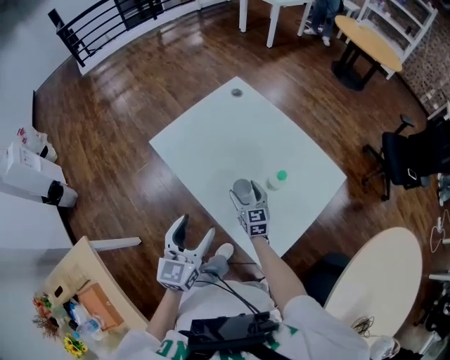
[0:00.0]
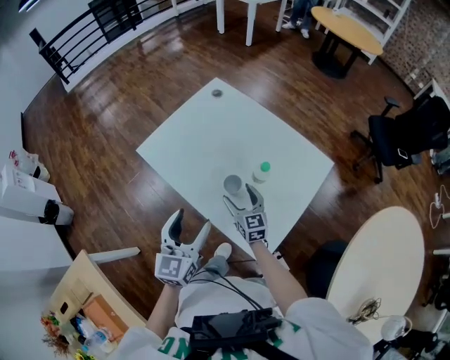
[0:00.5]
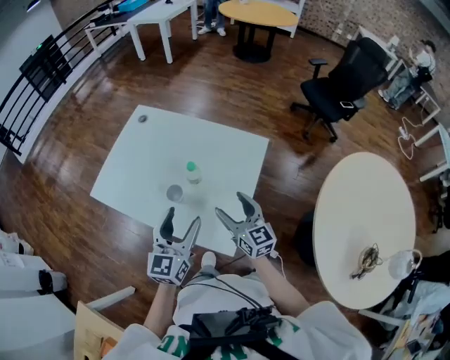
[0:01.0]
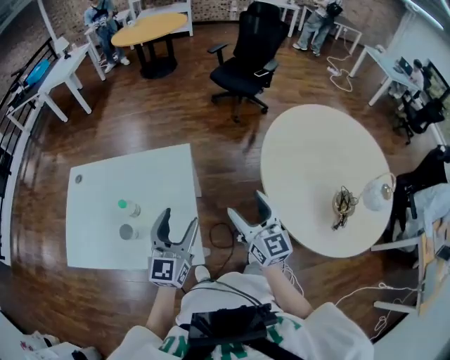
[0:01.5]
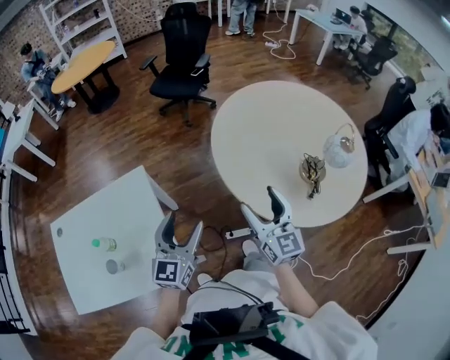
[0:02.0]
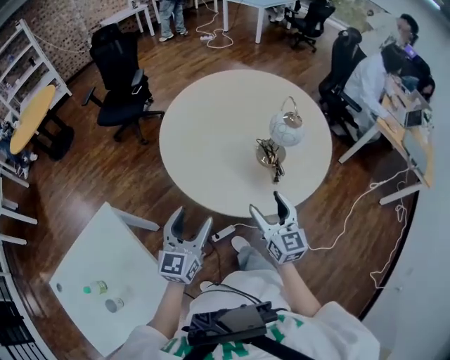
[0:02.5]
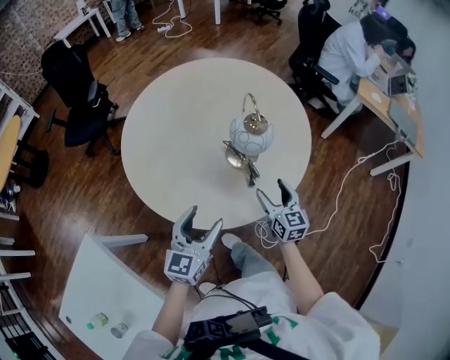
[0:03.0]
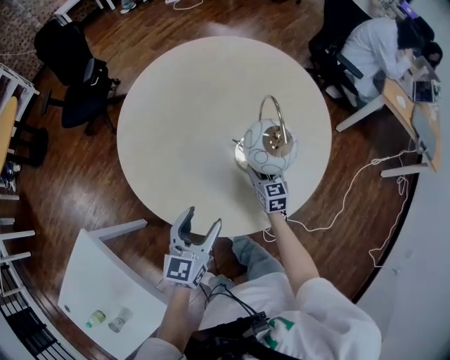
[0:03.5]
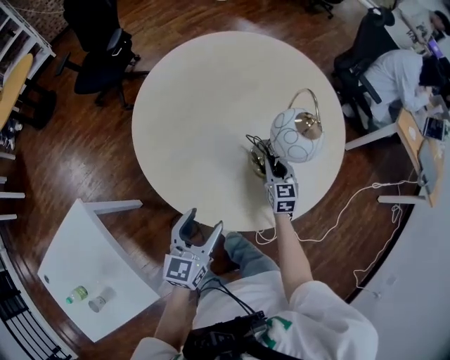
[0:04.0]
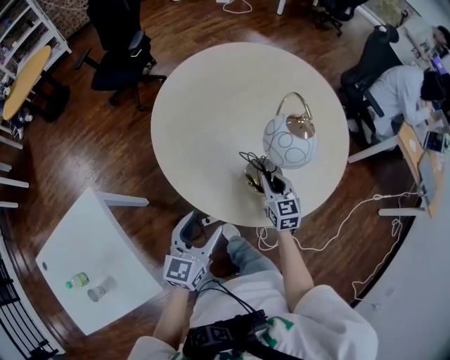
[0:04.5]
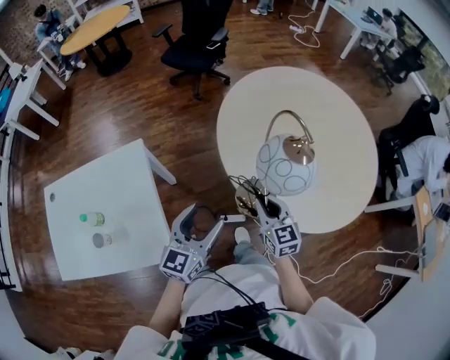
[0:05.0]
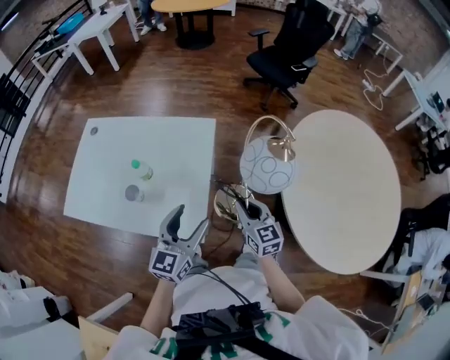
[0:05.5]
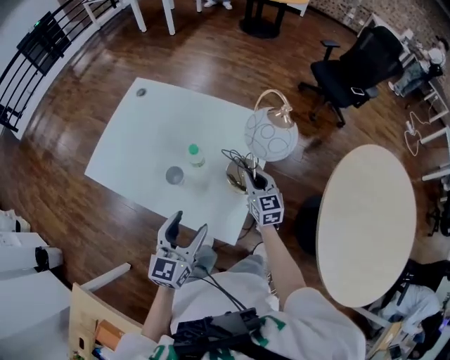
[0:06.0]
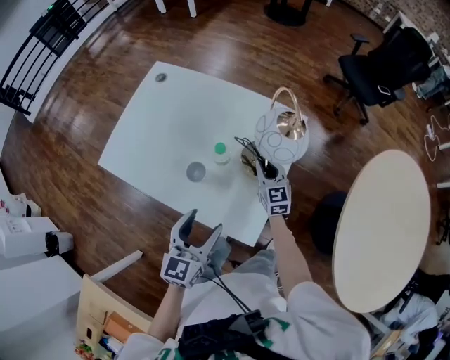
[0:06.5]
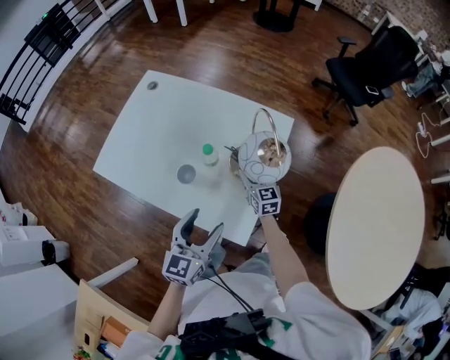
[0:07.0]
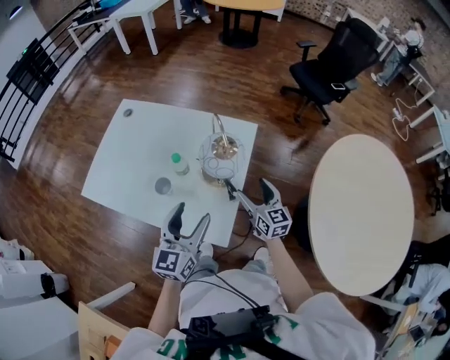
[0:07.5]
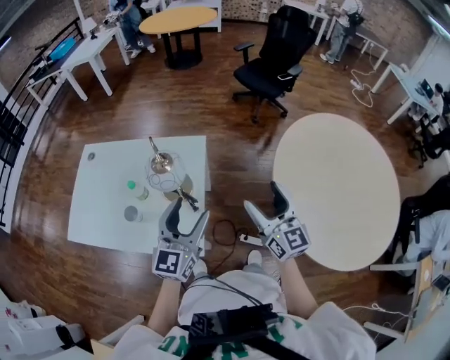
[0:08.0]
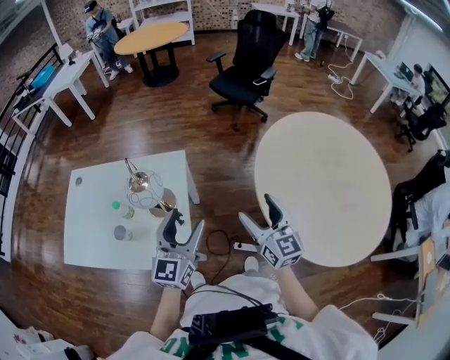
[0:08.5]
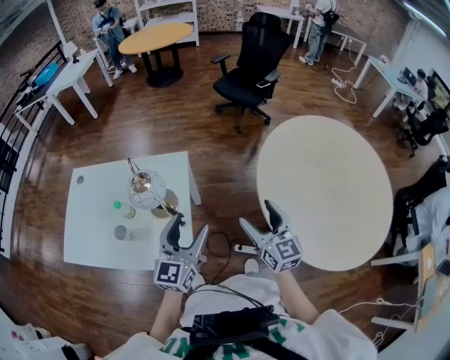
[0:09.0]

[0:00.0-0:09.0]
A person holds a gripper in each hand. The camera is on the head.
0:00.0 to 0:02.0: The two grippers travel together, roughly 60 cm. The right gripper swivels about 70 degrees. Meanwhile the left gripper turns by roughly 70 degrees.
0:02.0 to 0:04.5: The right gripper changes place by approximately 35 cm, changes its angle by some 30 degrees, and closes. Meanwhile the left gripper ends up about 30 cm from where it was, and swivels about 30 degrees.
0:04.5 to 0:07.0: Both grippers are carried roughly 70 cm. The right gripper swivels about 70 degrees, and opens up. The left gripper changes its angle by roughly 60 degrees.
0:07.0 to 0:09.0: The right gripper shifts about 50 cm to the right, upward and backward, and rotates roughly 30 degrees. Meanwhile the left gripper goes roughly 25 cm to the right and upward, and changes its angle by roughly 20 degrees.

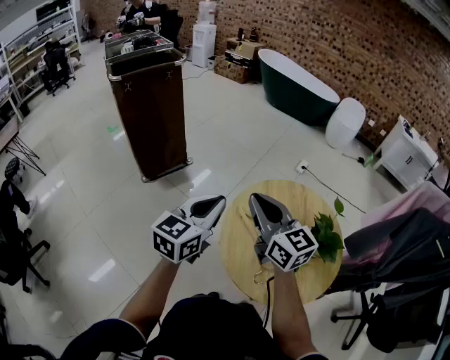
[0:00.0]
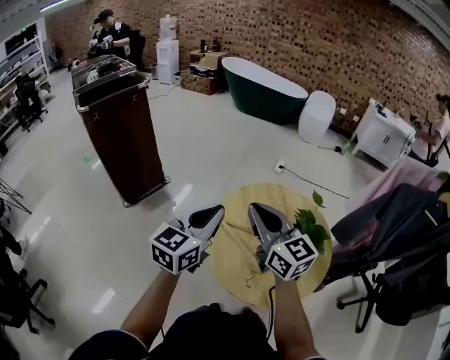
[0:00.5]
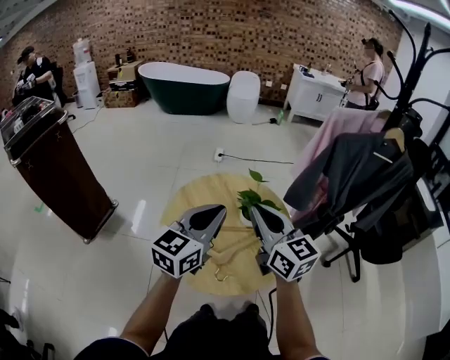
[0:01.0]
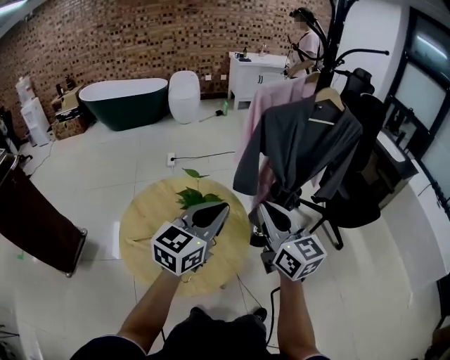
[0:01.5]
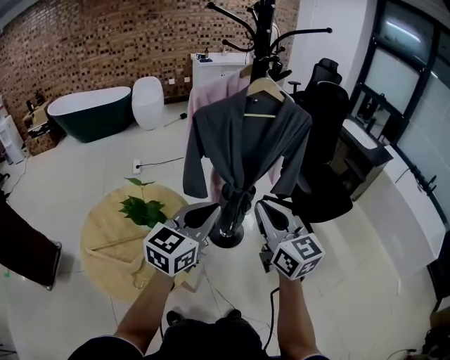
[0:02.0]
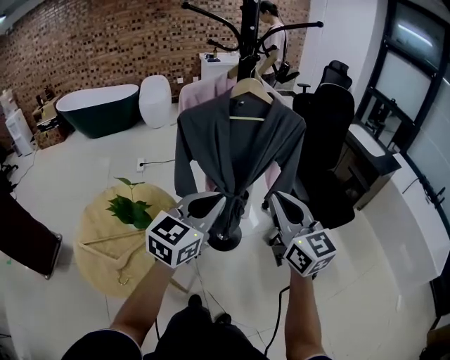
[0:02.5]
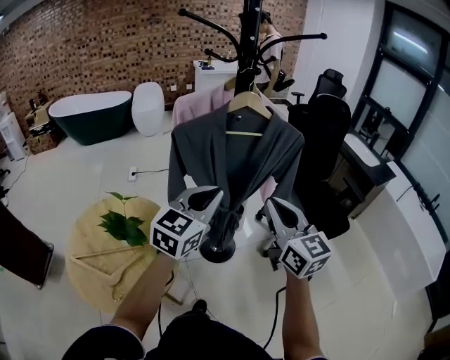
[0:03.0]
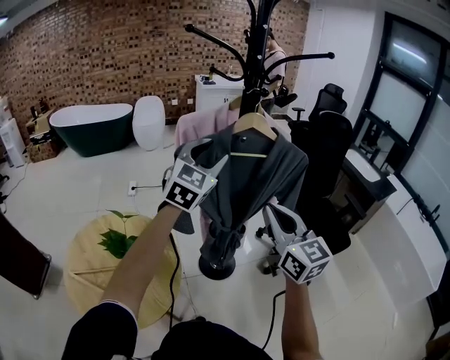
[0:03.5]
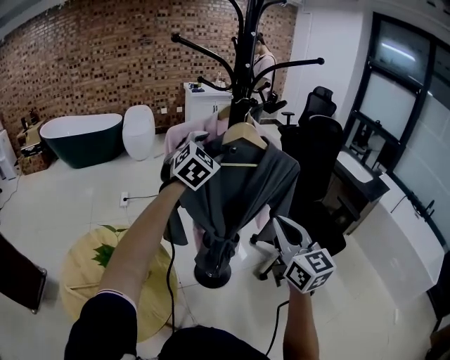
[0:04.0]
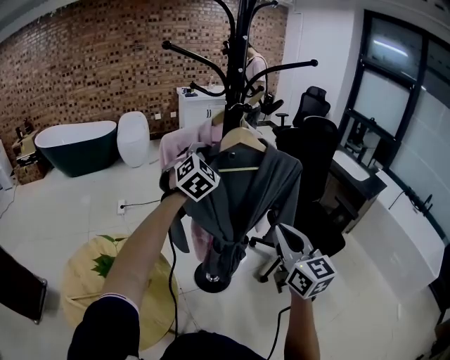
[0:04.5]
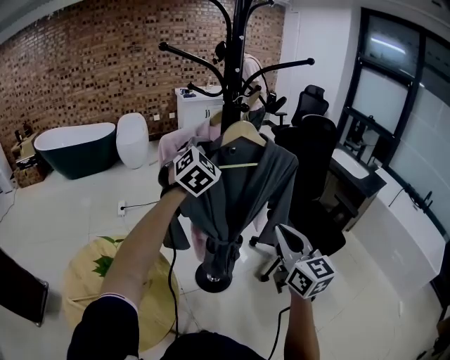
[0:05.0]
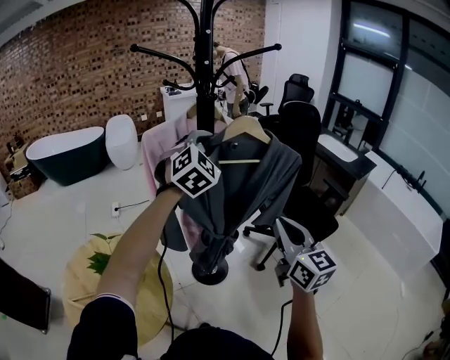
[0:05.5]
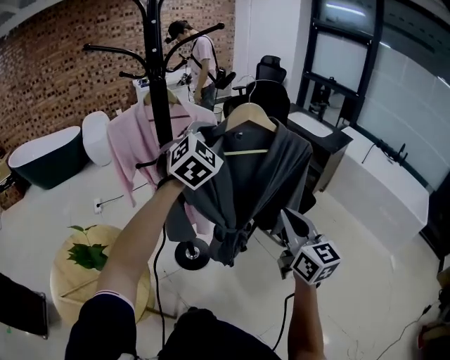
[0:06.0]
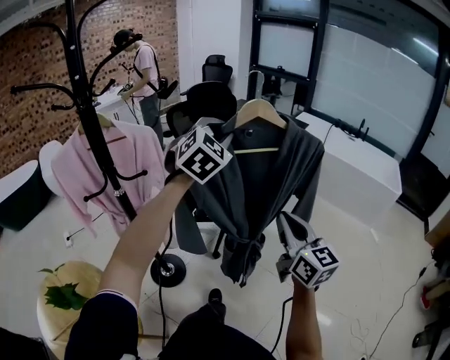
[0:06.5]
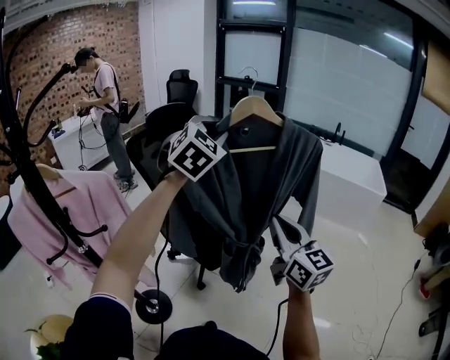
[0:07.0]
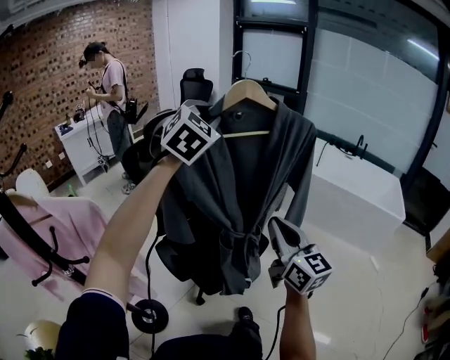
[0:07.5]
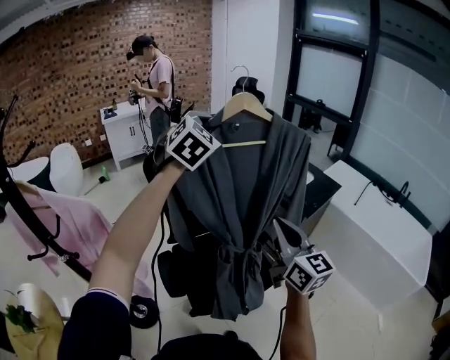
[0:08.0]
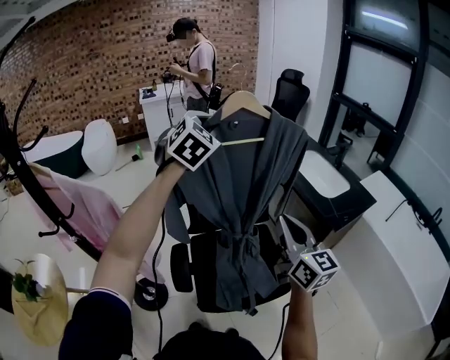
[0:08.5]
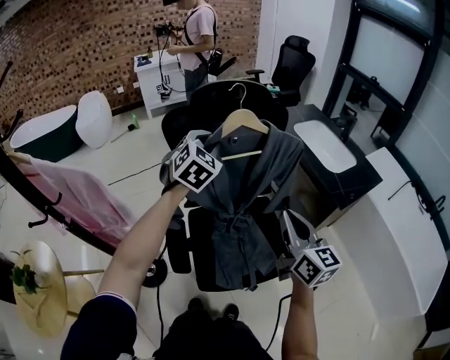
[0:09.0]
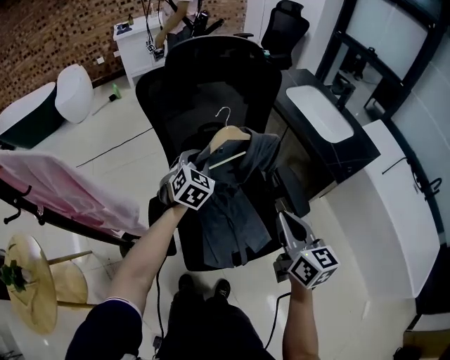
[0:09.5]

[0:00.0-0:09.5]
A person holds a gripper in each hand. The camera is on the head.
0:00.0 to 0:02.0: The two grippers travel together, some 60 cm. The left gripper changes its angle by some 60 degrees; the right gripper swivels about 60 degrees.
0:02.0 to 0:04.0: The left gripper moves forward, approximately 35 cm, changes its angle by roughly 40 degrees, and opens its fingers. The right gripper moves forward and to the right, about 20 cm.
0:04.0 to 0:05.5: The left gripper heads to the right and backward, covering some 10 cm, and closes up; the right gripper shifts approximately 5 cm to the right.
0:05.5 to 0:07.5: The two grippers travel together, about 50 cm. The left gripper changes its angle by about 30 degrees. Meanwhile the right gripper rotates roughly 20 degrees.
0:07.5 to 0:09.5: The left gripper travels downward by about 40 cm, and changes its angle by about 50 degrees, while the right gripper ends up about 25 cm from where it was, and turns by approximately 30 degrees.

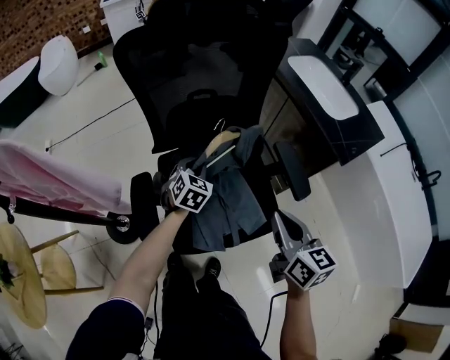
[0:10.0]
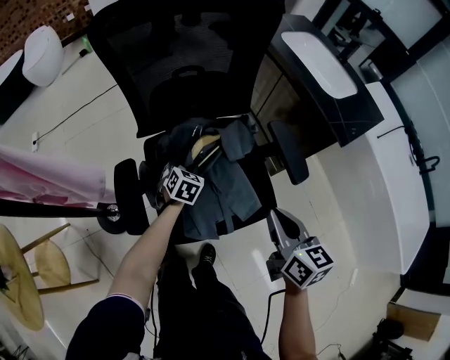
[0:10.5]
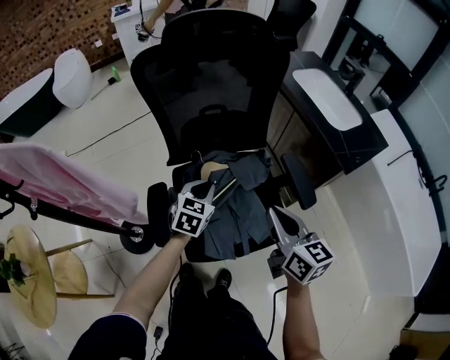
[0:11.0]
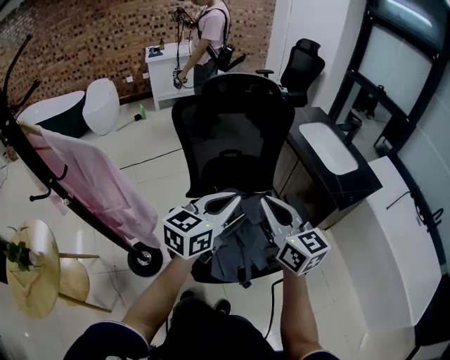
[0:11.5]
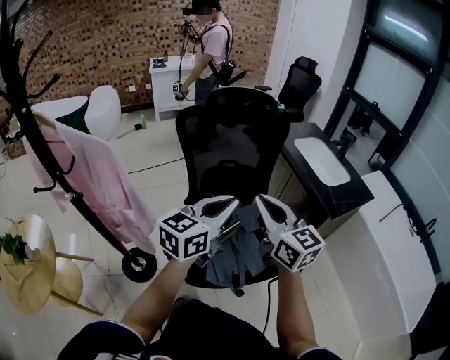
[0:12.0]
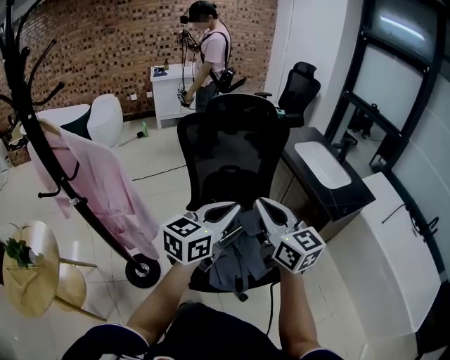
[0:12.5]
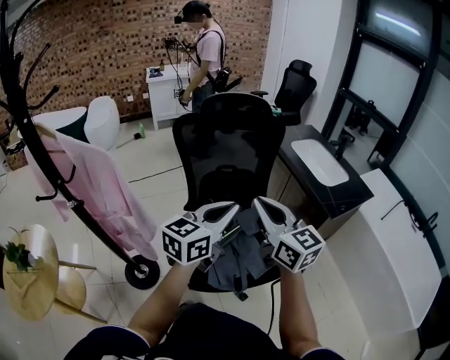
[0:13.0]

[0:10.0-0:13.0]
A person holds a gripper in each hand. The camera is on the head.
0:10.0 to 0:11.5: The left gripper moves upward and backward, some 35 cm, and tips its fingers upward by about 30 degrees. The right gripper moves upward and to the left, some 20 cm, and swivels some 30 degrees.
0:11.5 to 0:13.0: There are only small adjustments of the grippers.

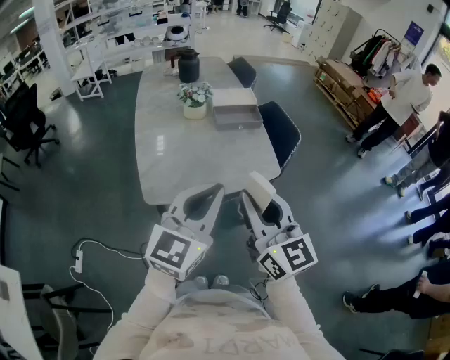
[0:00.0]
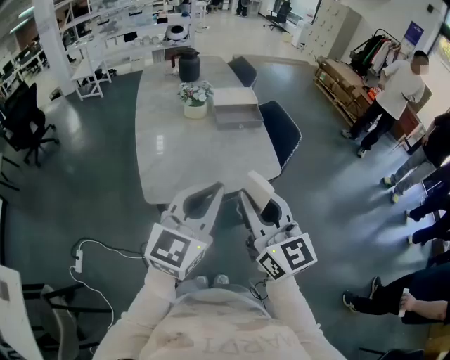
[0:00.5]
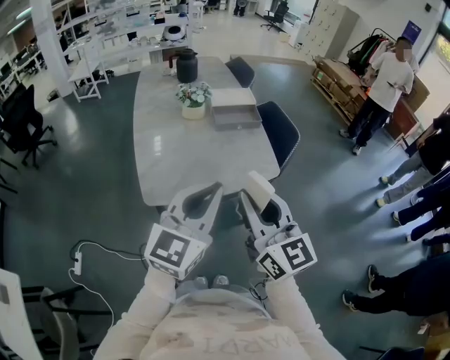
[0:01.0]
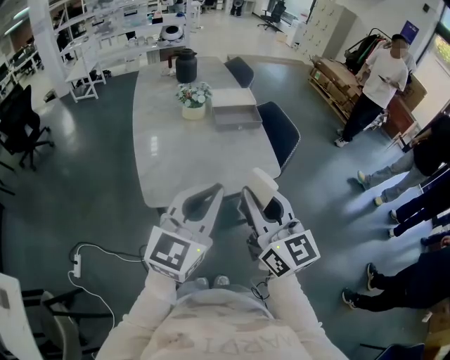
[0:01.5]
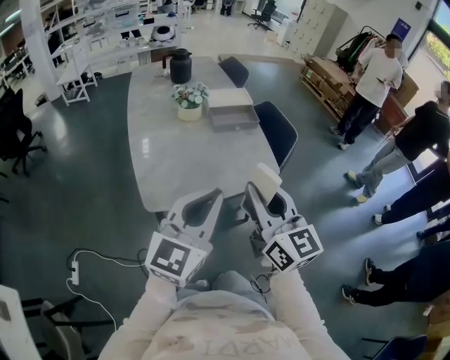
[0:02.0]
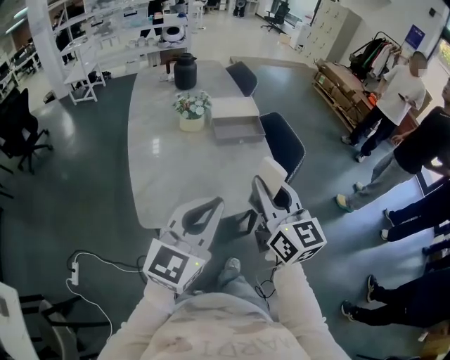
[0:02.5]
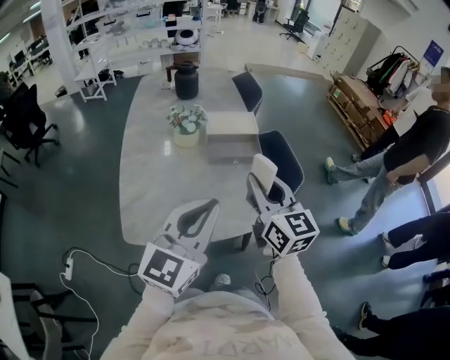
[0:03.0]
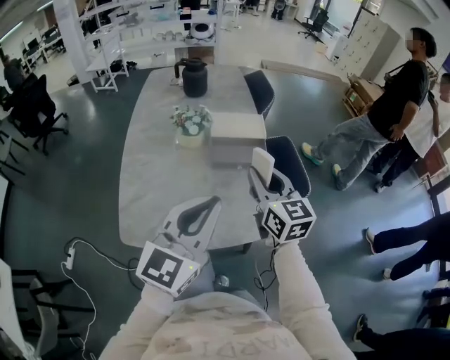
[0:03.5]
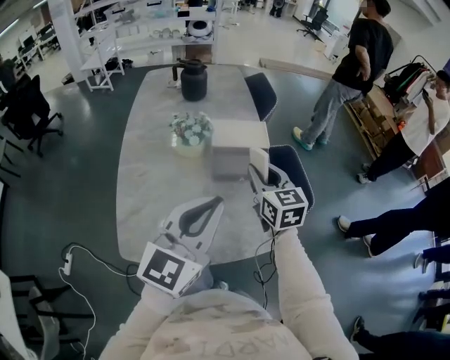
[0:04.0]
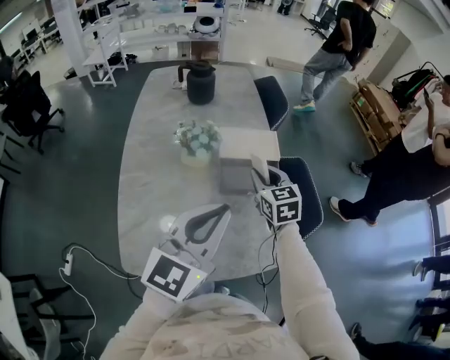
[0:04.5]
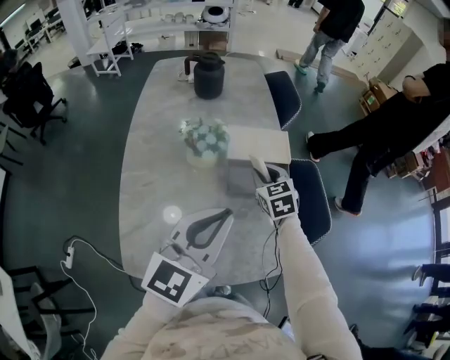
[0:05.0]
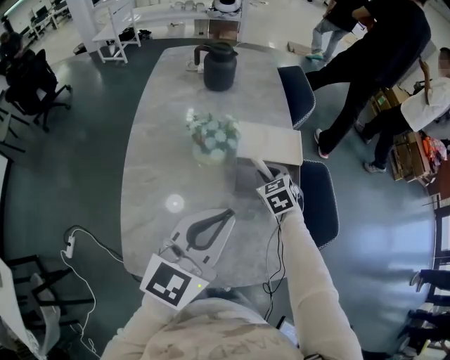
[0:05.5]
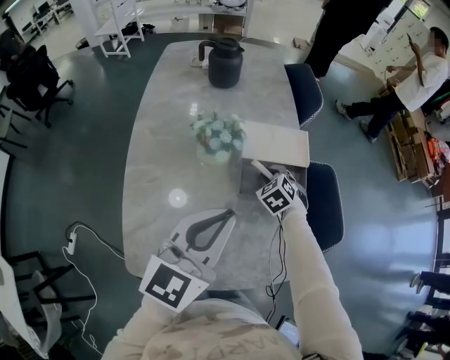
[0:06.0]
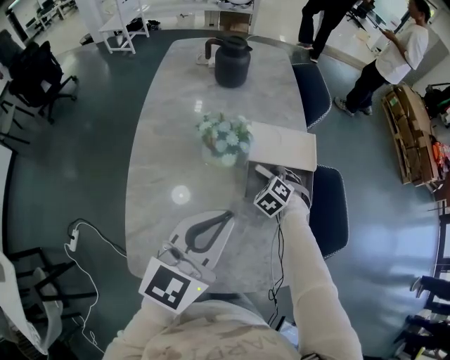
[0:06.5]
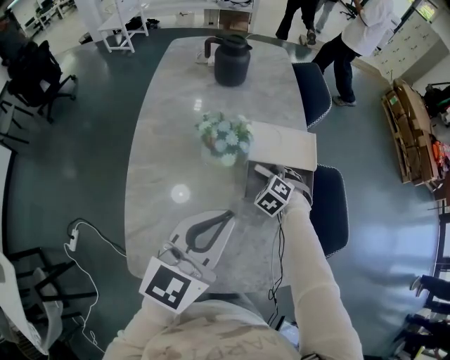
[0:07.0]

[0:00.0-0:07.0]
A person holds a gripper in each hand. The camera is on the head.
0:00.0 to 0:02.0: The grippers move only a little.
0:02.0 to 0:03.5: The left gripper shifts about 25 cm forward and to the right. The right gripper travels forward by approximately 35 cm.
0:03.5 to 0:05.0: The left gripper travels forward by roughly 15 cm. The right gripper goes about 30 cm forward and downward, and swivels roughly 30 degrees.
0:05.0 to 0:07.0: The left gripper shifts roughly 10 cm to the left and forward. Meanwhile the right gripper moves downward, some 15 cm, and swivels about 50 degrees.
